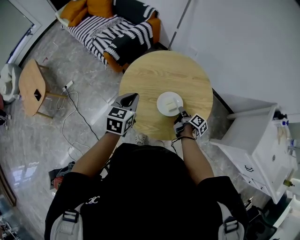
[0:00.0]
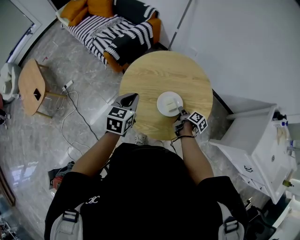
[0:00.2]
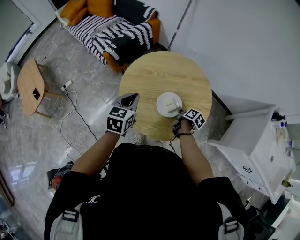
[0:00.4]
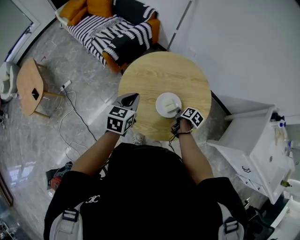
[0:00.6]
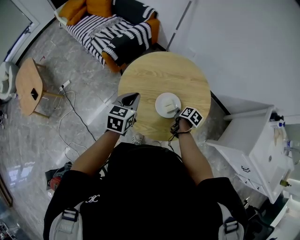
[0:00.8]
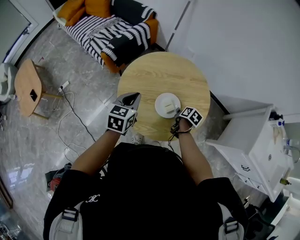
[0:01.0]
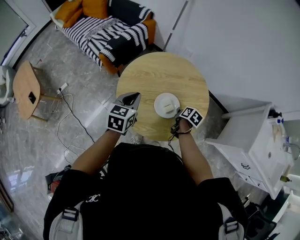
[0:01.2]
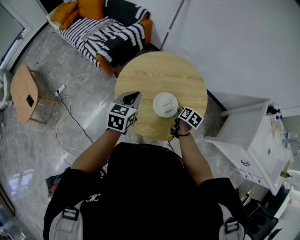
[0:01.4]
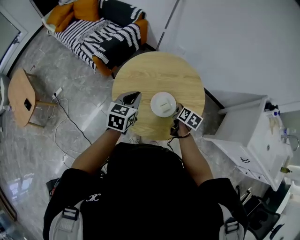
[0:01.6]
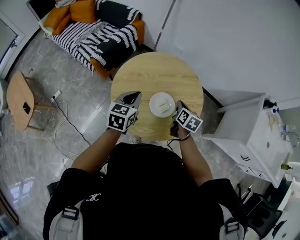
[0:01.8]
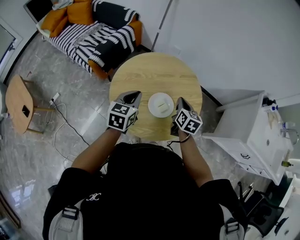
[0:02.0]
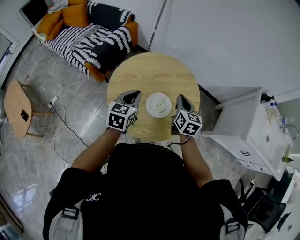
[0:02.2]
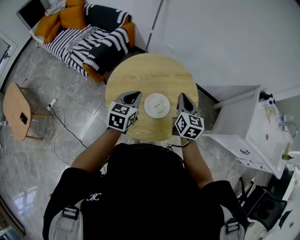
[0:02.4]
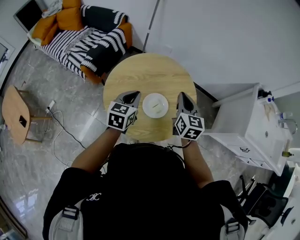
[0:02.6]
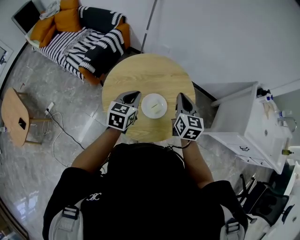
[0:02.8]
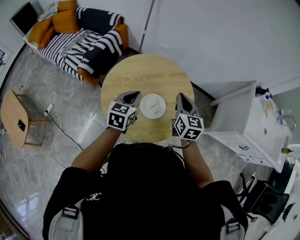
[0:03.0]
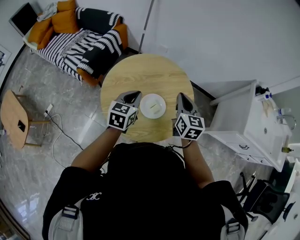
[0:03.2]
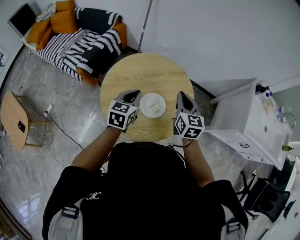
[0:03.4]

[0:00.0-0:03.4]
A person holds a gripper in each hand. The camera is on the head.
0:00.0 to 0:01.6: The right gripper heads upward, covering some 5 cm, and changes its angle by some 40 degrees.
0:01.6 to 0:03.4: The left gripper moves some 5 cm. Meanwhile the right gripper is displaced upward by roughly 15 cm, and rotates about 40 degrees.

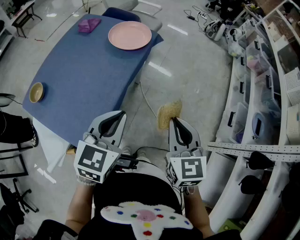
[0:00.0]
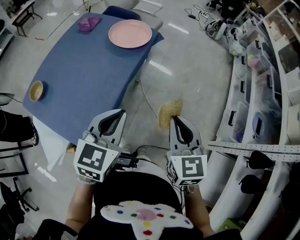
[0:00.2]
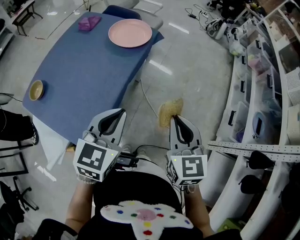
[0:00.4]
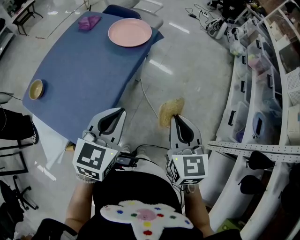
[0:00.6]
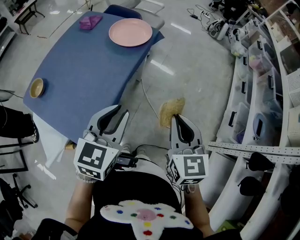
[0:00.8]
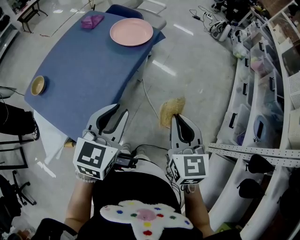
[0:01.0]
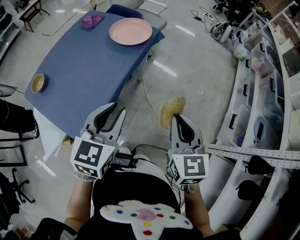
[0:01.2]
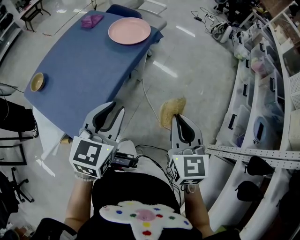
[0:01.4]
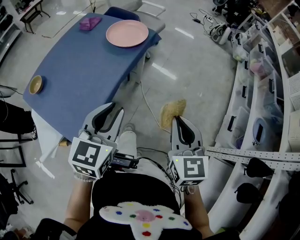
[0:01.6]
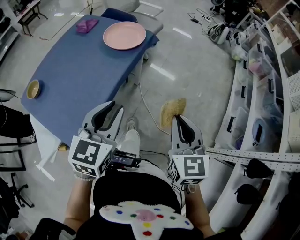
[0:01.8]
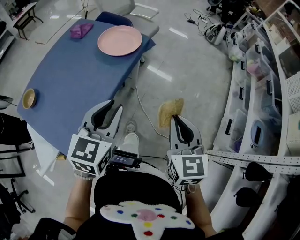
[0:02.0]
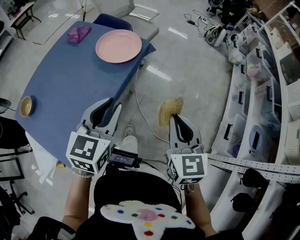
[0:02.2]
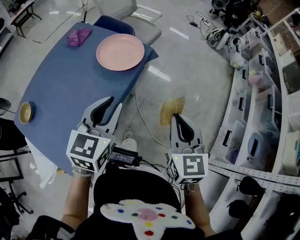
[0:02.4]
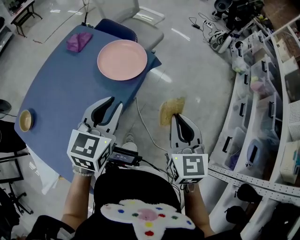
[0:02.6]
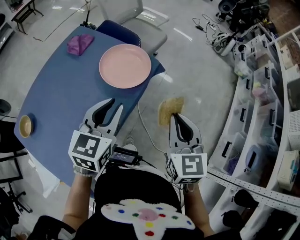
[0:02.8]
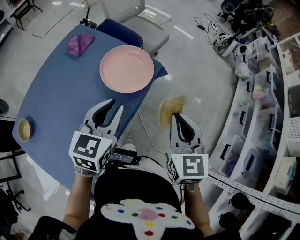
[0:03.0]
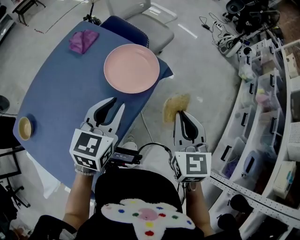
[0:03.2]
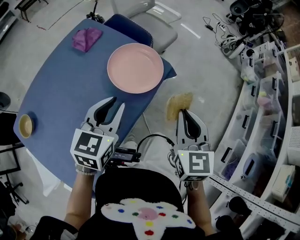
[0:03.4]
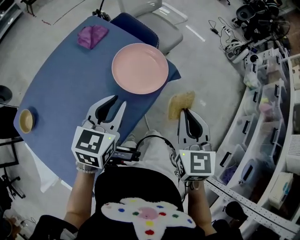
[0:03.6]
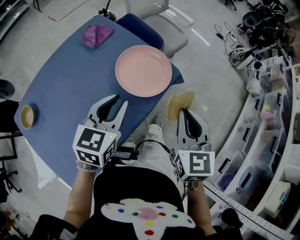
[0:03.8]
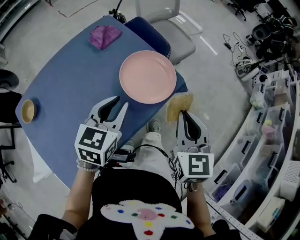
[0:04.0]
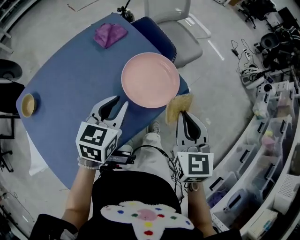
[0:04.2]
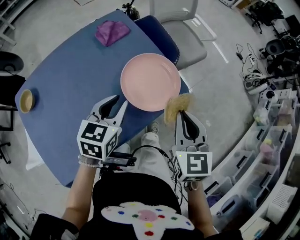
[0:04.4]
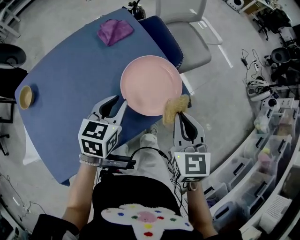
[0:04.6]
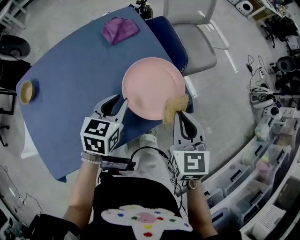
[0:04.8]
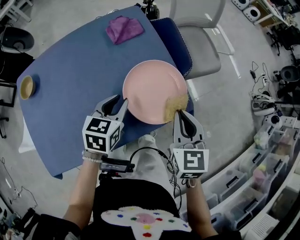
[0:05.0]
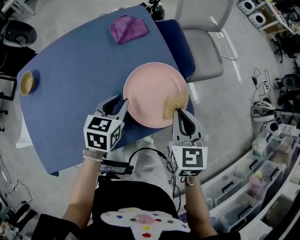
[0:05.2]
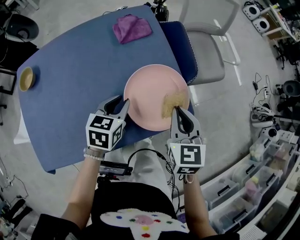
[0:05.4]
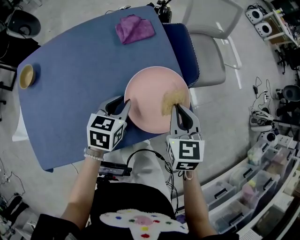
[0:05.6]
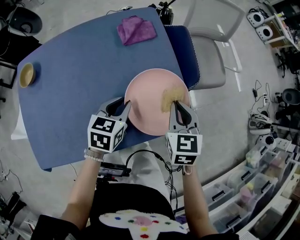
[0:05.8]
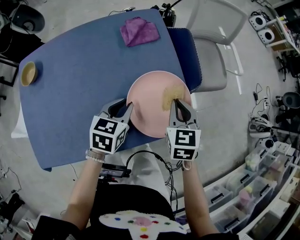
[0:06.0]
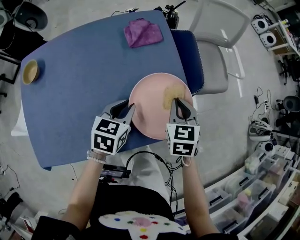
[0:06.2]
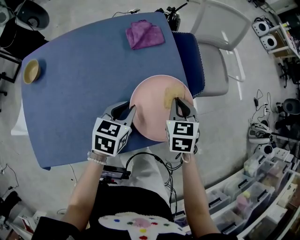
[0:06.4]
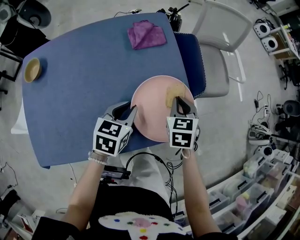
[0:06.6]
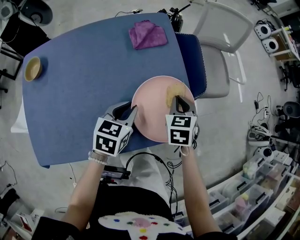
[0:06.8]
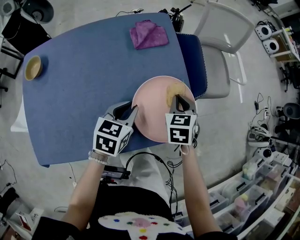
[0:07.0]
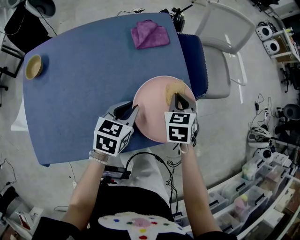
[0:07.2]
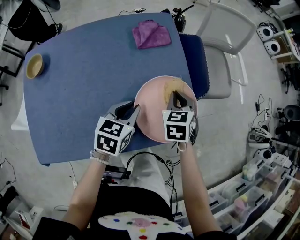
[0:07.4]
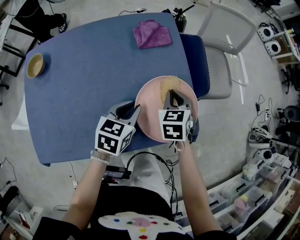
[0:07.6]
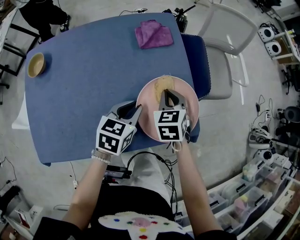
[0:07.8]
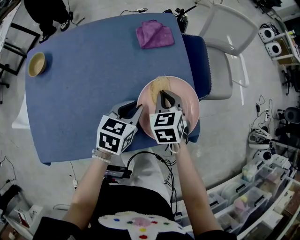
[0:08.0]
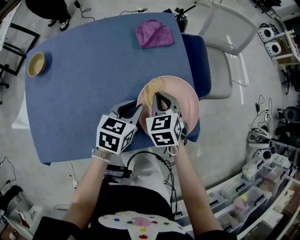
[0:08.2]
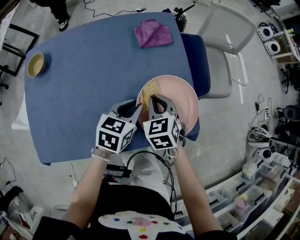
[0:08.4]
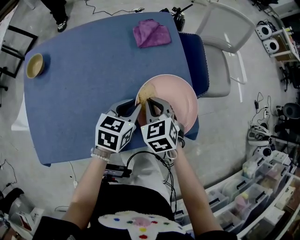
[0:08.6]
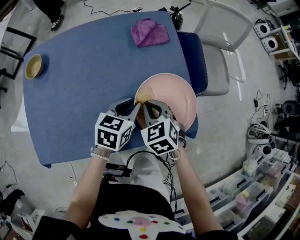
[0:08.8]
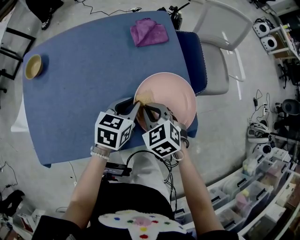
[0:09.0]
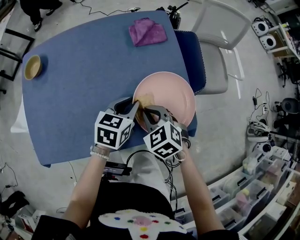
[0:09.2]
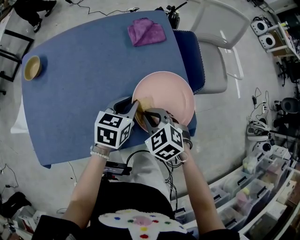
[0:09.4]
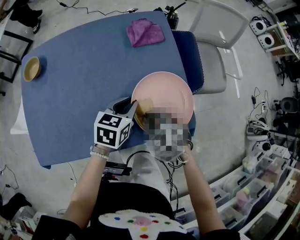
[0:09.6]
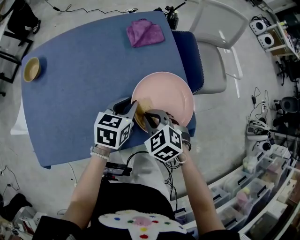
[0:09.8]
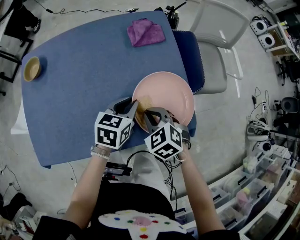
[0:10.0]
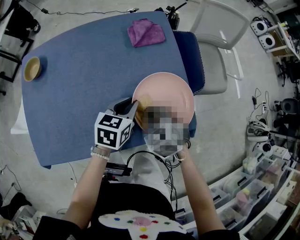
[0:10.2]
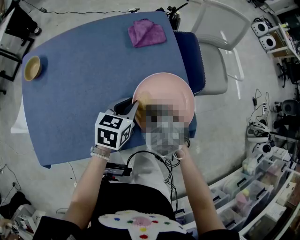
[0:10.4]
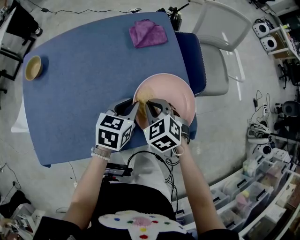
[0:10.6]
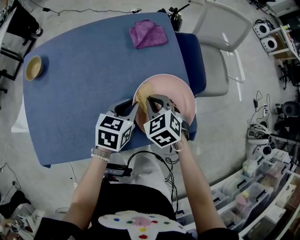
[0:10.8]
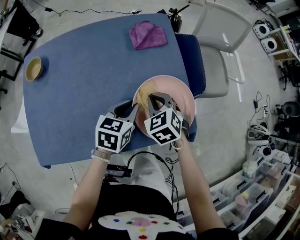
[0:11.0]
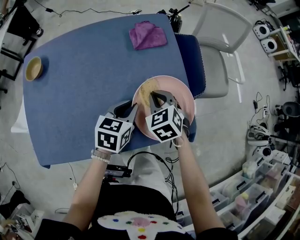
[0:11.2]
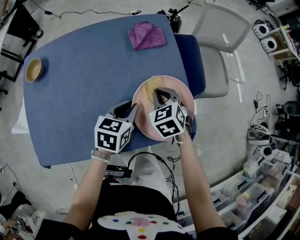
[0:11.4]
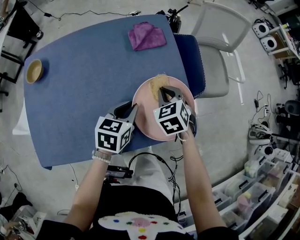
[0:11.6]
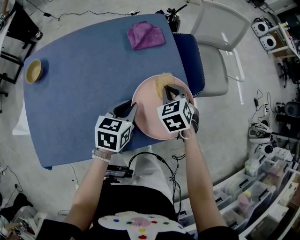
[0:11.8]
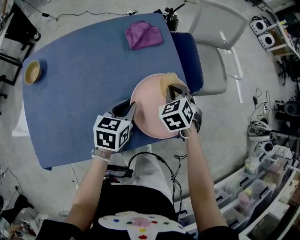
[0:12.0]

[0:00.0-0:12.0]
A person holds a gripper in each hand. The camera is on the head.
0:00.0 to 0:01.6: The right gripper goes about 5 cm to the right.
0:01.6 to 0:03.0: Both grippers move forward, some 30 cm.
0:03.0 to 0:04.4: The left gripper moves downward, forward and to the left, about 10 cm, and swivels approximately 20 degrees. The right gripper heads forward, covering about 15 cm, and swivels approximately 20 degrees.
0:04.4 to 0:06.0: The left gripper heads downward, covering about 10 cm, and rotates about 20 degrees; the right gripper goes some 20 cm forward and downward, and swivels approximately 20 degrees.
0:06.0 to 0:07.6: The right gripper travels to the left by approximately 5 cm.
0:07.6 to 0:09.0: The right gripper goes approximately 10 cm backward and to the left, and swivels about 30 degrees.
0:09.0 to 0:10.4: The grippers make only small movements.
0:10.4 to 0:12.0: The right gripper travels forward and to the right by some 15 cm, and turns by approximately 20 degrees.

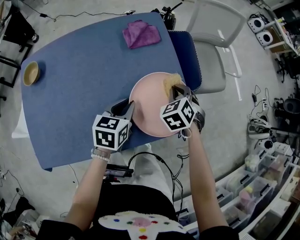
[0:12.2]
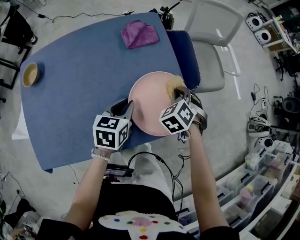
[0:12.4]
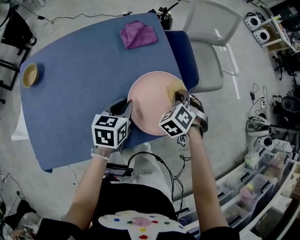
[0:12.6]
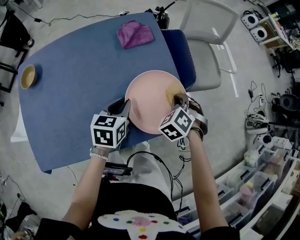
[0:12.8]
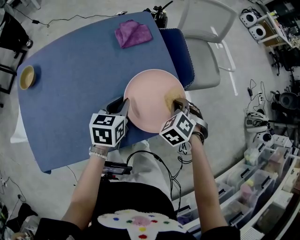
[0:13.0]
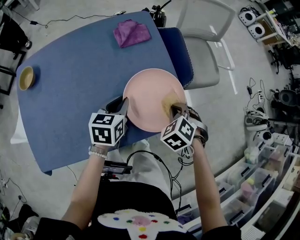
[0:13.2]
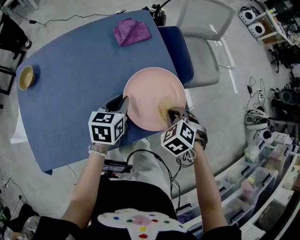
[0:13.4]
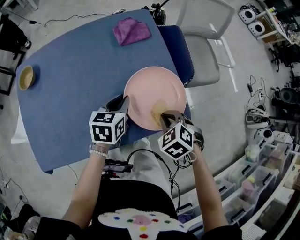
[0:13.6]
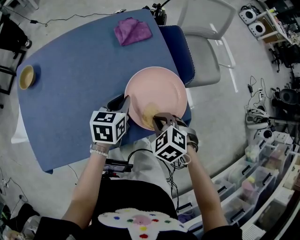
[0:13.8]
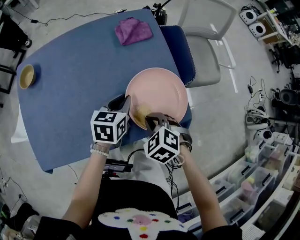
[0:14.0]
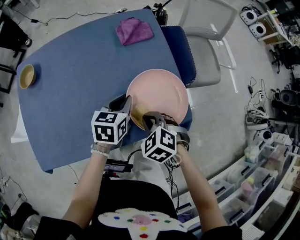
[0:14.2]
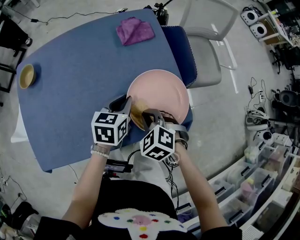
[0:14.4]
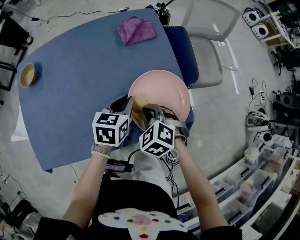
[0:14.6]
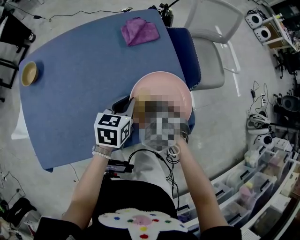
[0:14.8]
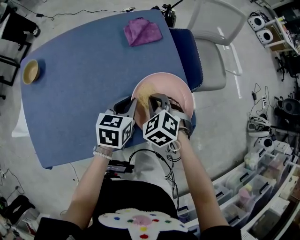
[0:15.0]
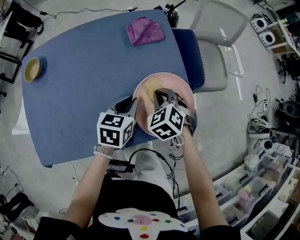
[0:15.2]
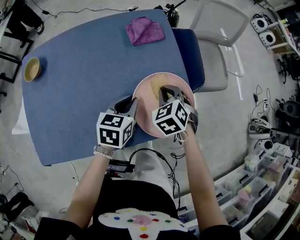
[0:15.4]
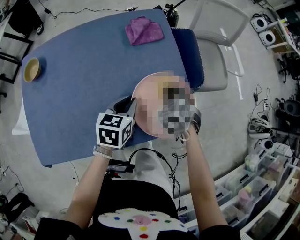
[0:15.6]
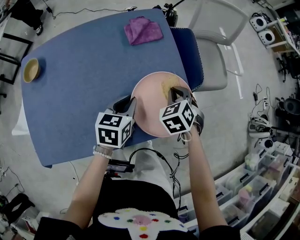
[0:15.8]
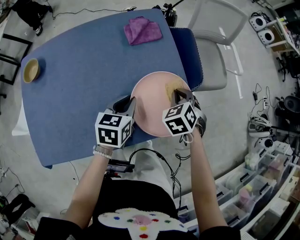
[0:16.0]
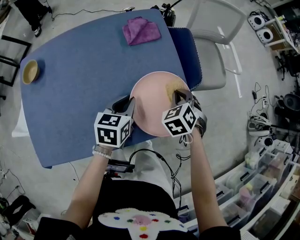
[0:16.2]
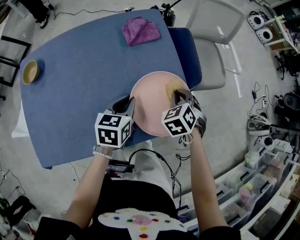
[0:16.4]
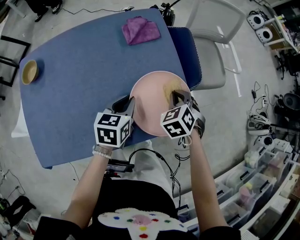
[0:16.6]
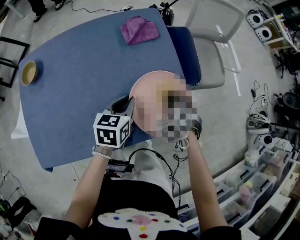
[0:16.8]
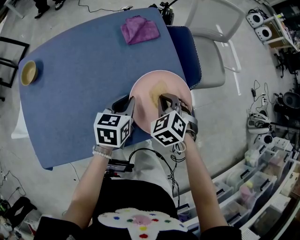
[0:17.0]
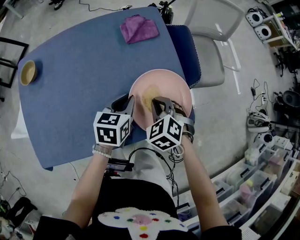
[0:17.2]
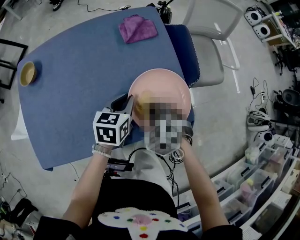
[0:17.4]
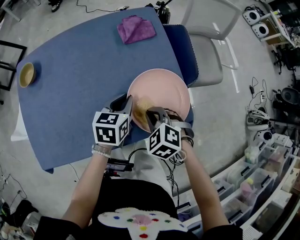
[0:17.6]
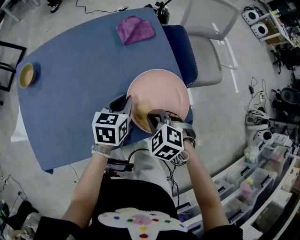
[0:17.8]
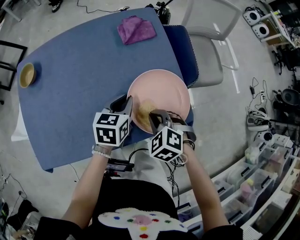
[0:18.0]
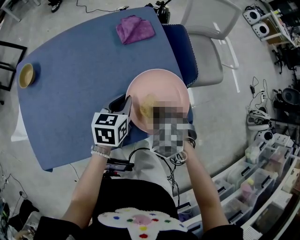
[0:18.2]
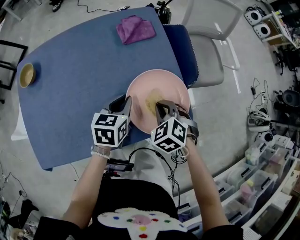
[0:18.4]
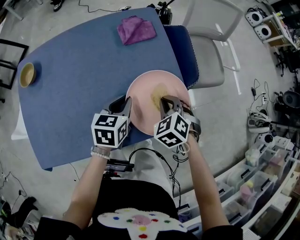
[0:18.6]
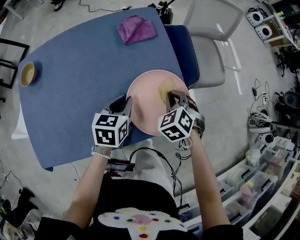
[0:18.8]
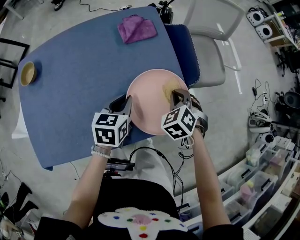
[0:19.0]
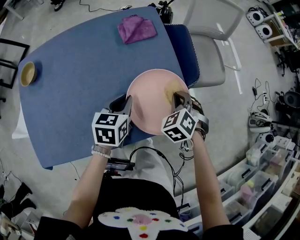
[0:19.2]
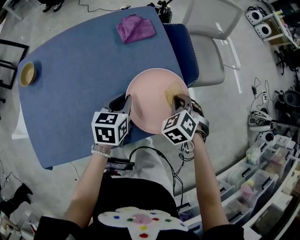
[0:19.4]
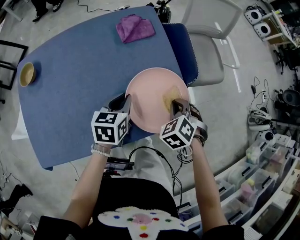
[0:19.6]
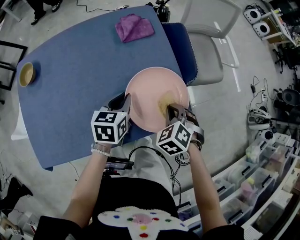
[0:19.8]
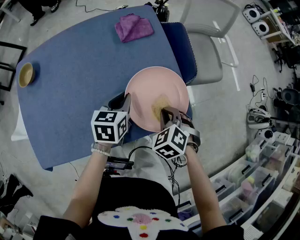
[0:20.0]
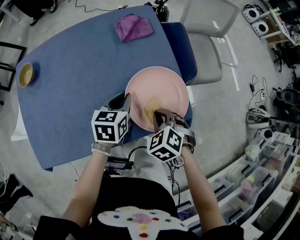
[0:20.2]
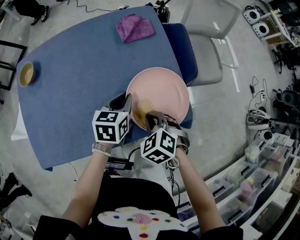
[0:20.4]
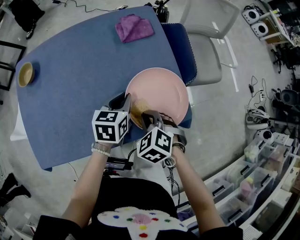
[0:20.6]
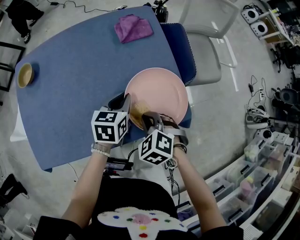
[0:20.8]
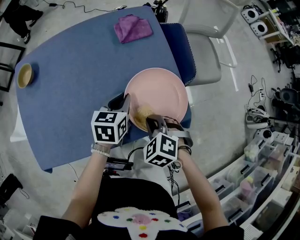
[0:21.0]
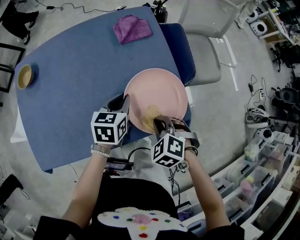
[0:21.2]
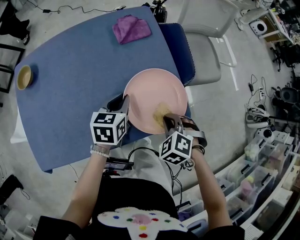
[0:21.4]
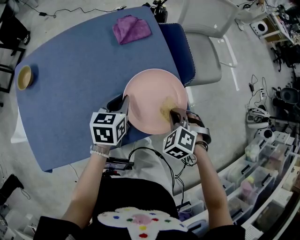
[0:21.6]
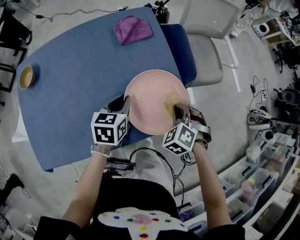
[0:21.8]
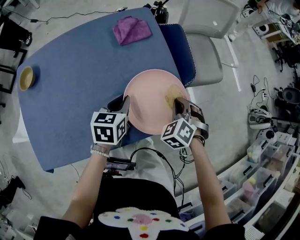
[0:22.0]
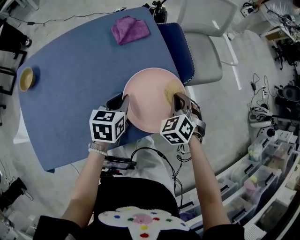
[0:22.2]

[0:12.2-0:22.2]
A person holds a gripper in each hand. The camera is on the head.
0:12.2 to 0:13.6: The right gripper travels backward by some 15 cm.
0:13.6 to 0:15.0: The right gripper heads forward and to the left, covering roughly 10 cm.
0:15.0 to 0:16.4: The right gripper shifts roughly 10 cm to the right and forward.
0:16.4 to 0:18.0: The right gripper moves backward and to the left, roughly 15 cm, and changes its angle by about 30 degrees.
0:18.0 to 0:19.4: The right gripper moves to the right and forward, roughly 15 cm, and rotates roughly 20 degrees.
0:19.4 to 0:20.8: The right gripper goes about 15 cm to the left and backward.
0:20.8 to 0:22.2: The right gripper shifts some 15 cm to the right and forward, and turns by some 30 degrees.
